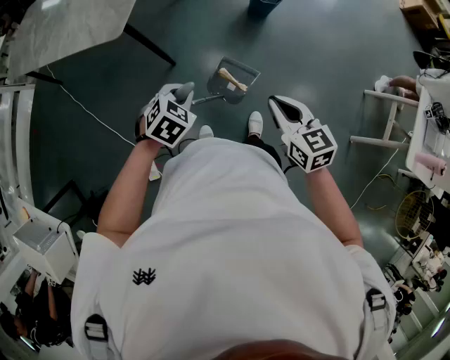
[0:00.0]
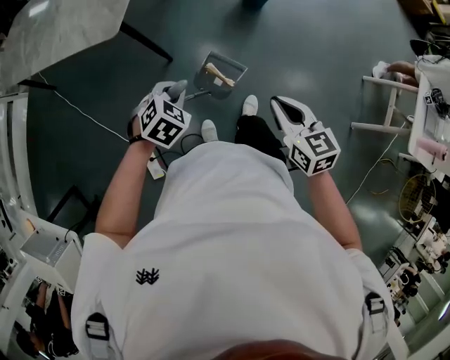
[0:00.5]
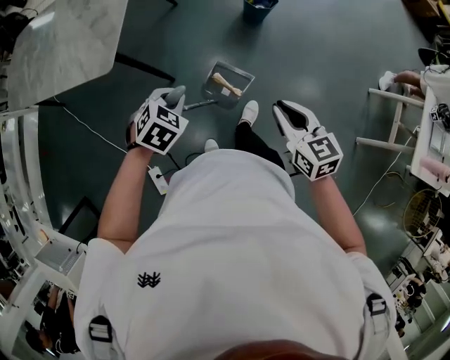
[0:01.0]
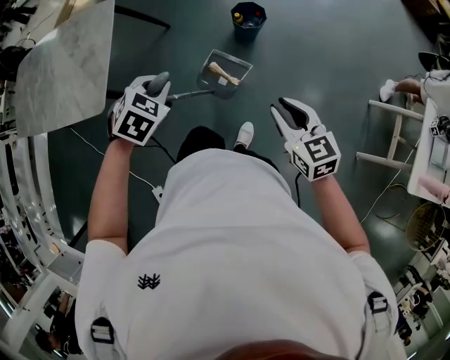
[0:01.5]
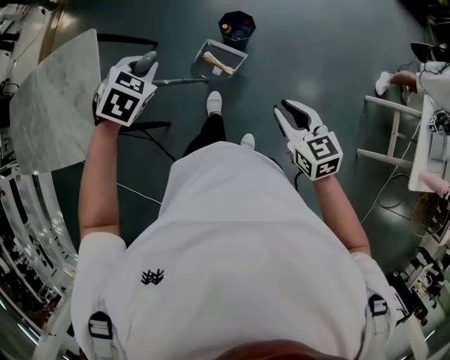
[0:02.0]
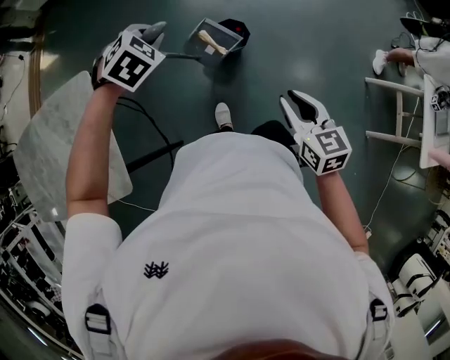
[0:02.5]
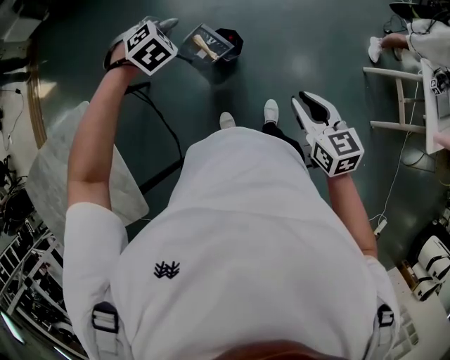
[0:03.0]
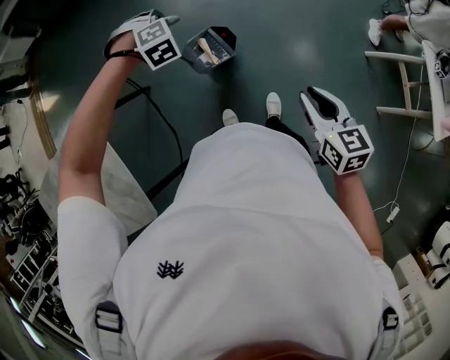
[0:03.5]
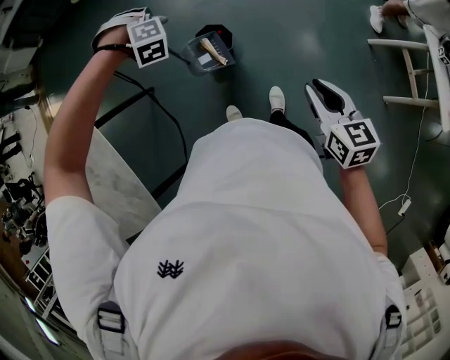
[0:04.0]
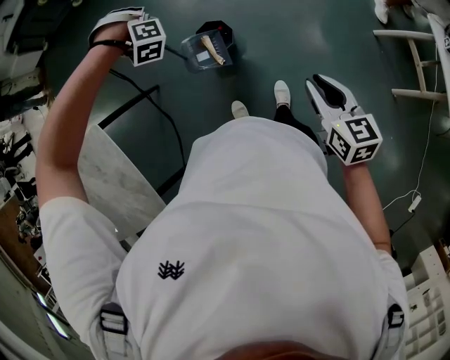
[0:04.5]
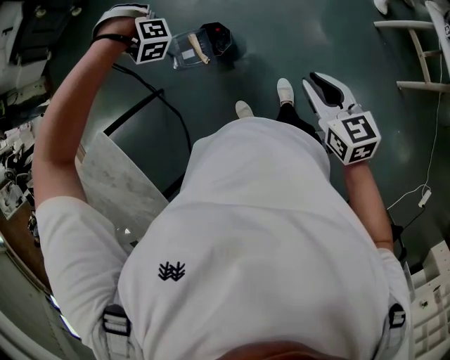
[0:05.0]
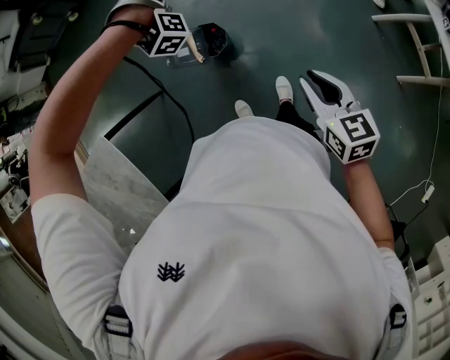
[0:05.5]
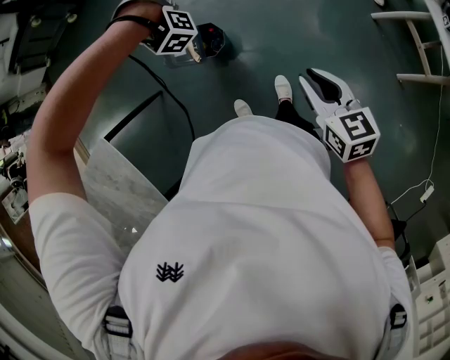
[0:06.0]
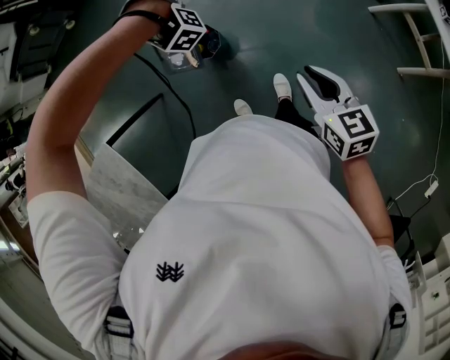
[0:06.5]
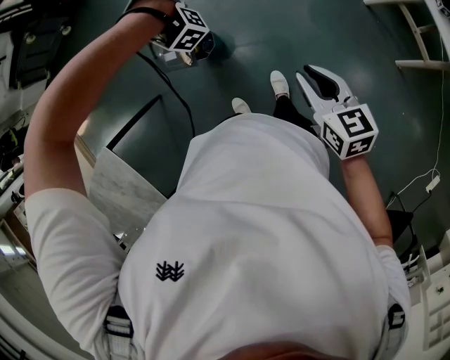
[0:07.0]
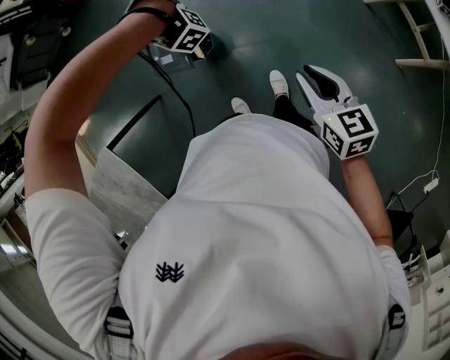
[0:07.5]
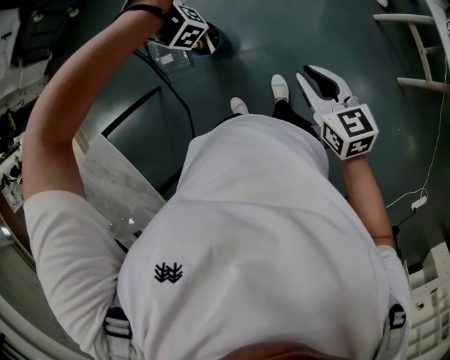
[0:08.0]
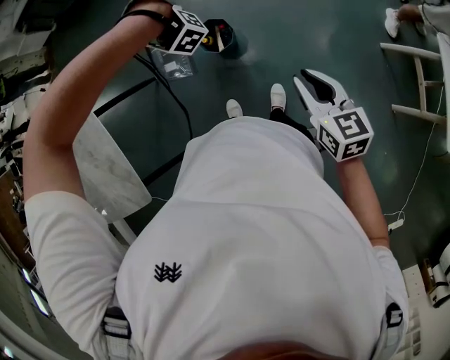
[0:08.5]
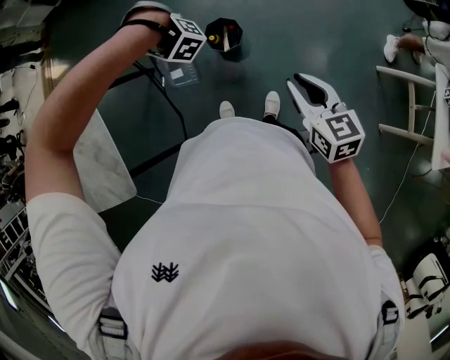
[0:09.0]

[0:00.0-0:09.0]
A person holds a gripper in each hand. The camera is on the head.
0:00.0 to 0:02.0: The right gripper shifts by about 40 cm.
0:02.0 to 0:04.5: The right gripper shifts by some 20 cm, and changes its angle by approximately 30 degrees.
0:04.5 to 0:07.0: The right gripper changes place by roughly 10 cm.
0:07.0 to 0:09.0: The right gripper shifts by approximately 15 cm, and turns by roughly 20 degrees.

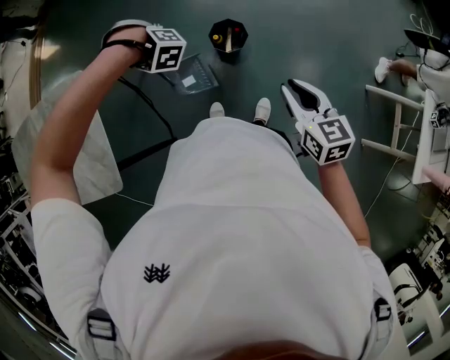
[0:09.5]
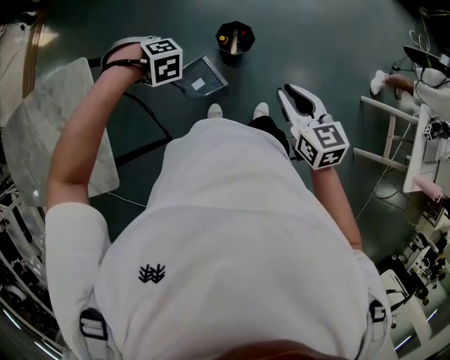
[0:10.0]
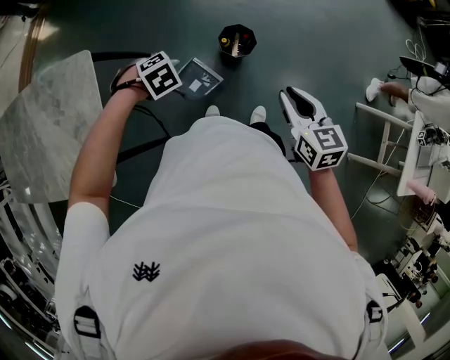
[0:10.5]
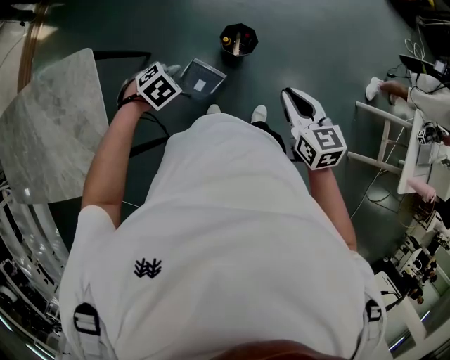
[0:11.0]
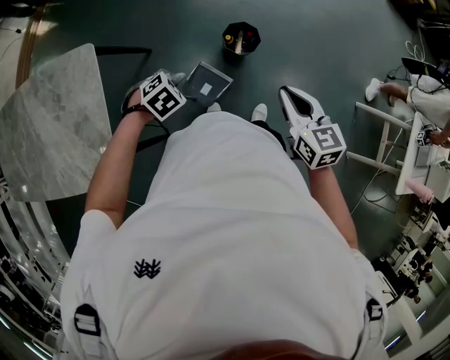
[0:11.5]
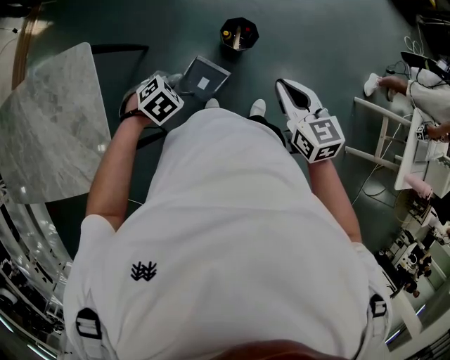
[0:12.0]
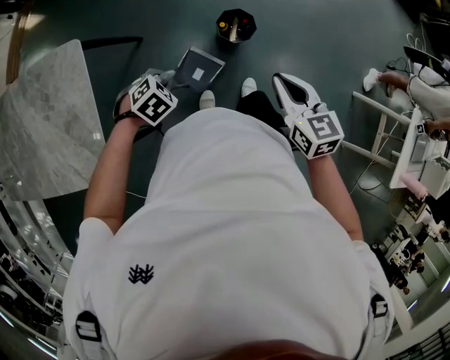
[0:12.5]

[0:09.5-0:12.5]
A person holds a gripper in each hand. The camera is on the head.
0:09.5 to 0:11.0: The right gripper changes place by roughly 10 cm.
0:11.0 to 0:12.5: The right gripper changes place by roughly 5 cm.

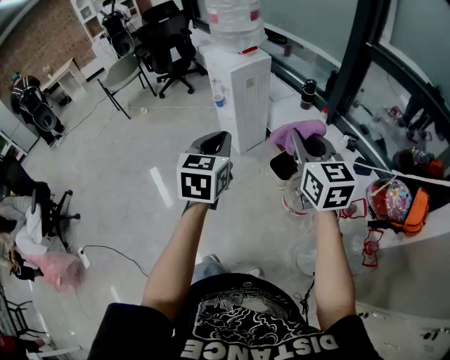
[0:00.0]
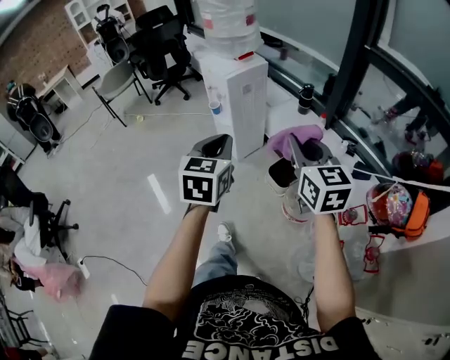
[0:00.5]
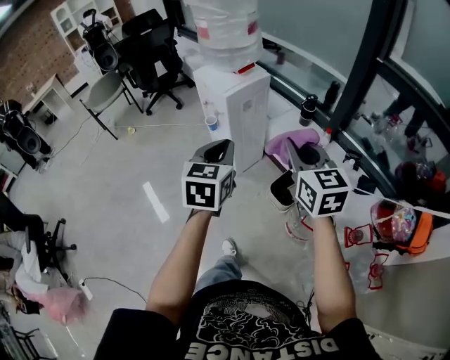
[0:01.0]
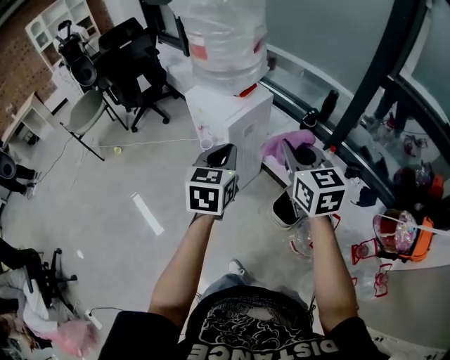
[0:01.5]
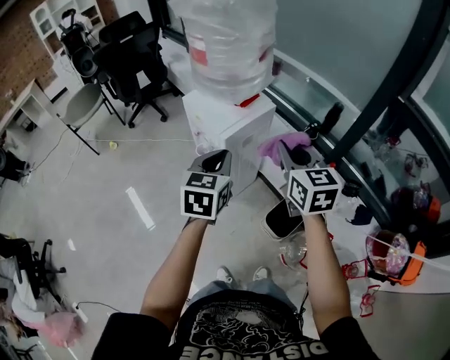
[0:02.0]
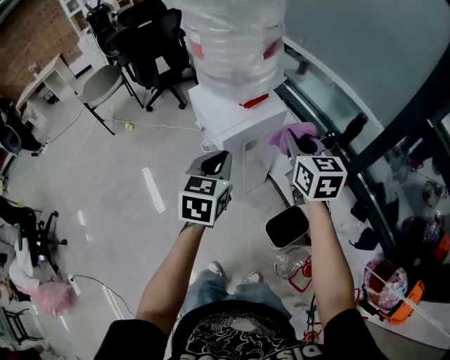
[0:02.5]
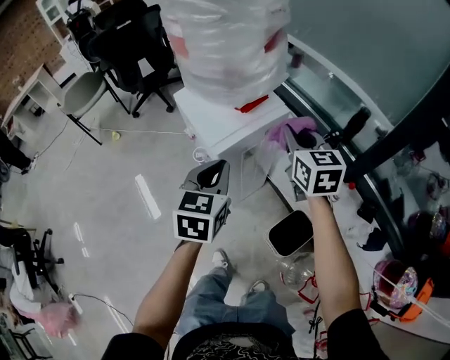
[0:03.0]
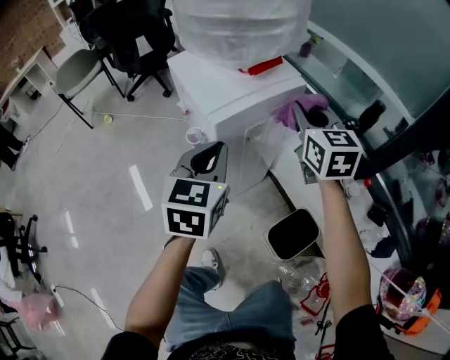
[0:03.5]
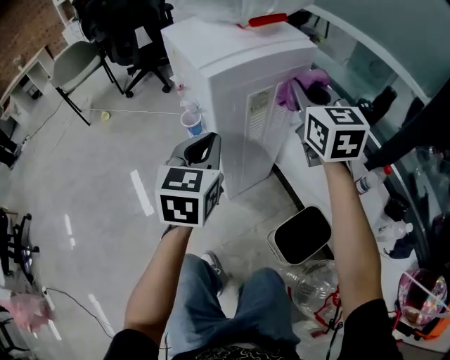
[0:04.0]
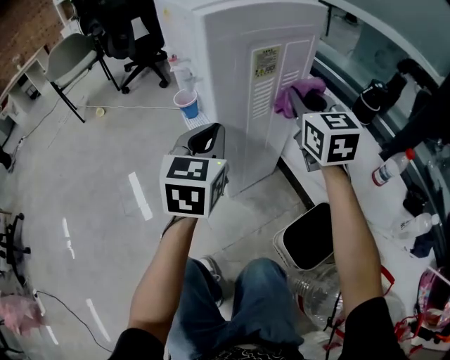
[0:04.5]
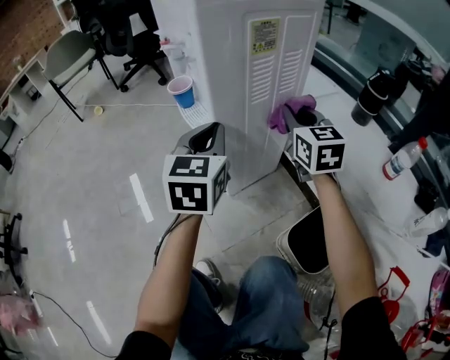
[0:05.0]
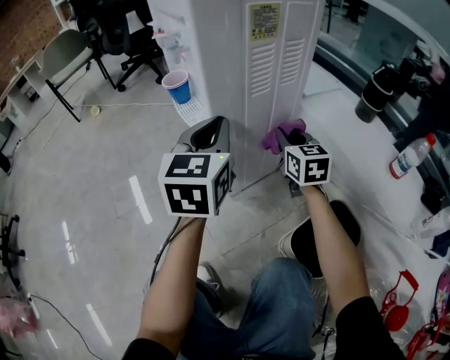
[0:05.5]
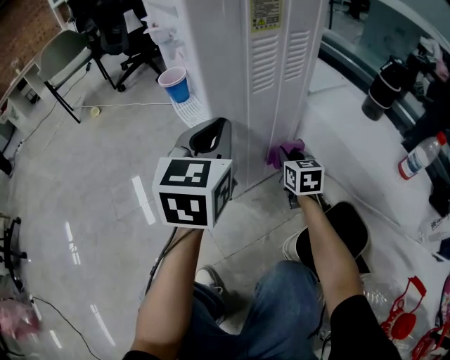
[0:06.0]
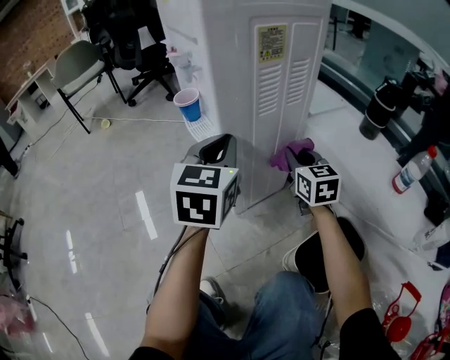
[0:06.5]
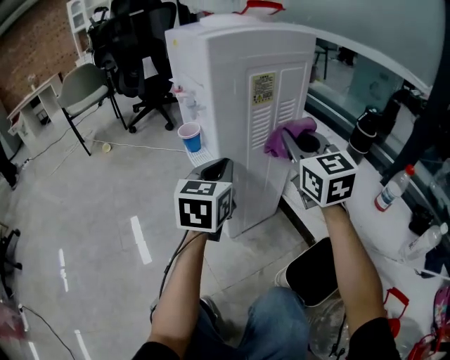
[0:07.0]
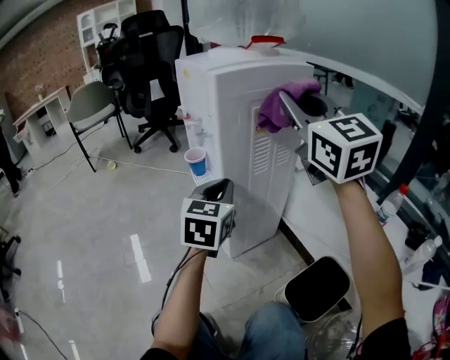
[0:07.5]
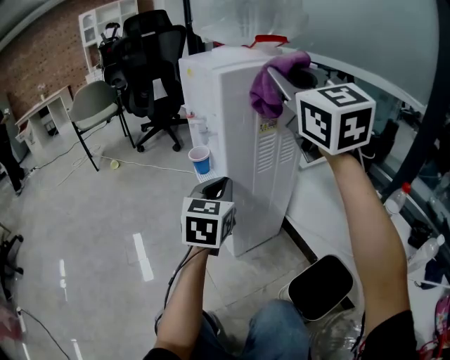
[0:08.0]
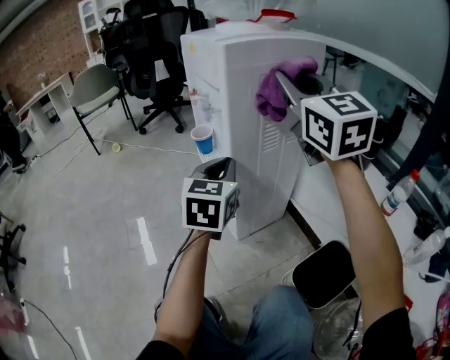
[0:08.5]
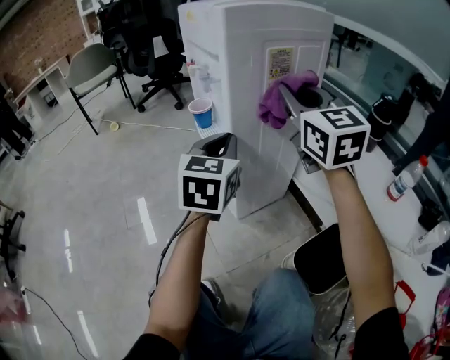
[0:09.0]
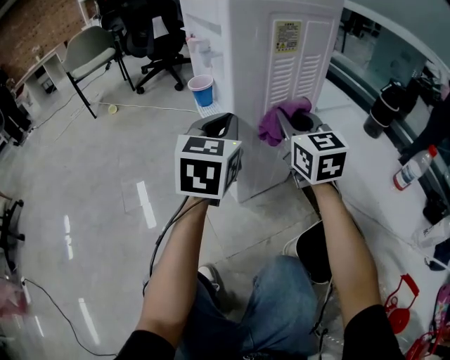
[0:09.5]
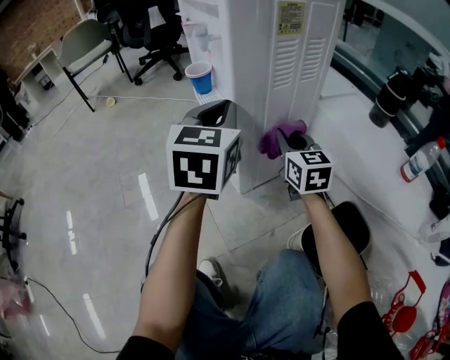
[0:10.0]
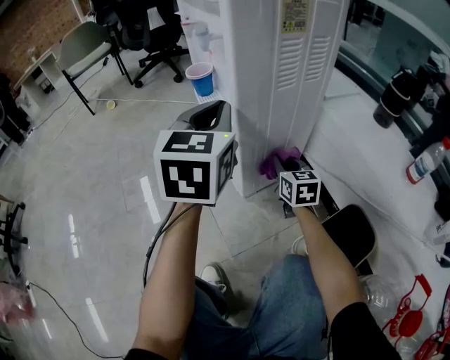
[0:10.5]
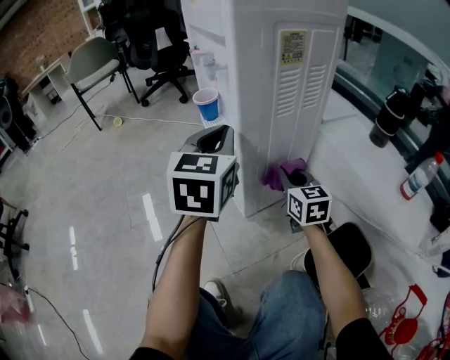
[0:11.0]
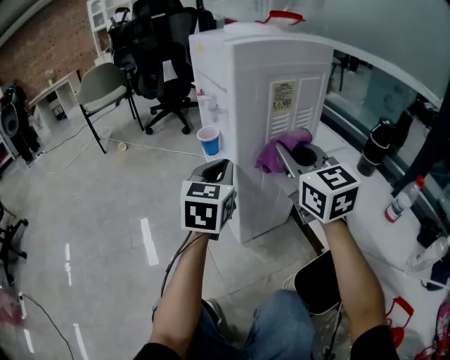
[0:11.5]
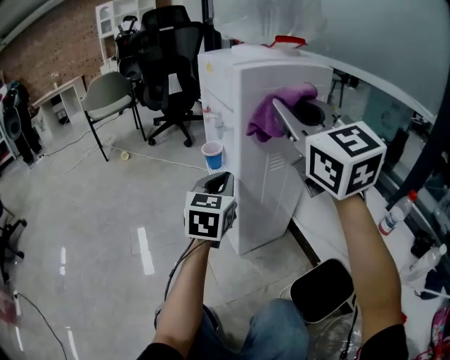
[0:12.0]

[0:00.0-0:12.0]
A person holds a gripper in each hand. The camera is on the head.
0:00.0 to 0:02.0: Both grippers travel together forward, approximately 40 cm.
0:02.0 to 0:04.0: The right gripper travels downward and forward by approximately 30 cm; the left gripper is displaced downward by some 25 cm.
0:04.0 to 0:06.0: The left gripper moves downward, about 15 cm, while the right gripper heads downward, covering about 50 cm, and rotates about 20 degrees.
0:06.0 to 0:08.0: The right gripper moves upward, about 50 cm, and points its fingers some 40 degrees further upward. The left gripper shifts by roughly 5 cm.
0:08.0 to 0:10.0: The right gripper moves downward, about 40 cm, and changes its angle by roughly 30 degrees.
0:10.0 to 0:12.0: The right gripper travels upward by roughly 35 cm, and changes its angle by approximately 30 degrees.

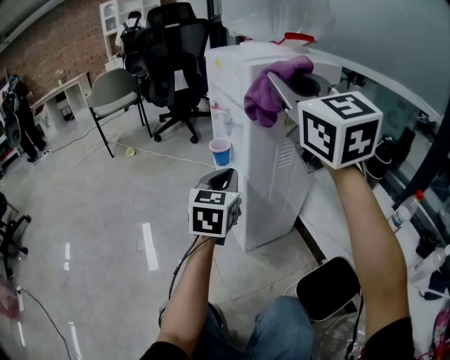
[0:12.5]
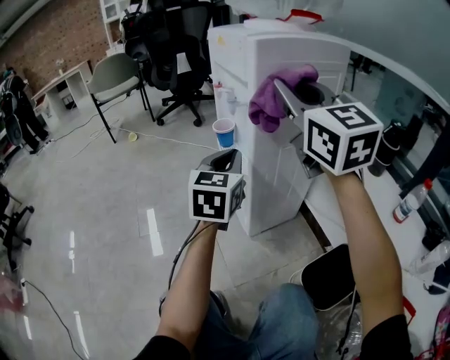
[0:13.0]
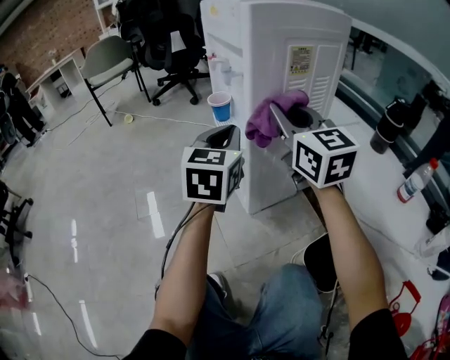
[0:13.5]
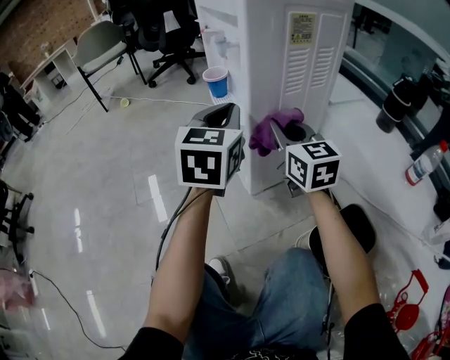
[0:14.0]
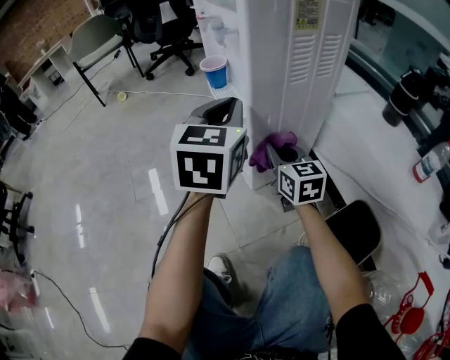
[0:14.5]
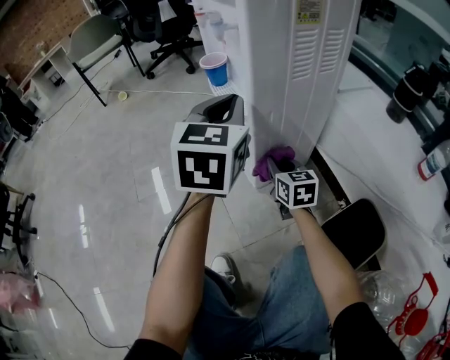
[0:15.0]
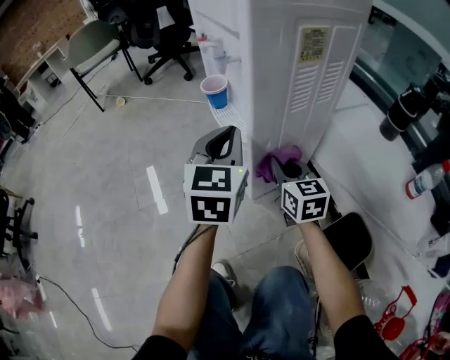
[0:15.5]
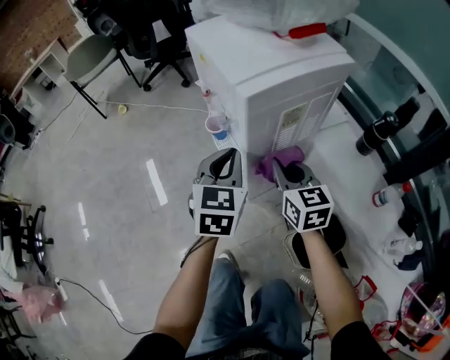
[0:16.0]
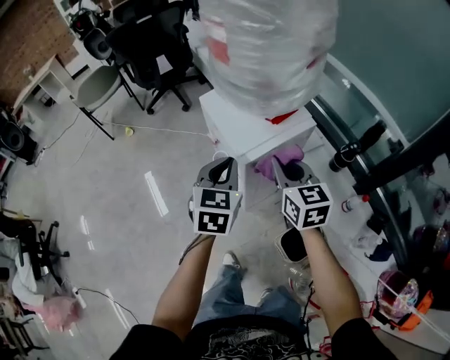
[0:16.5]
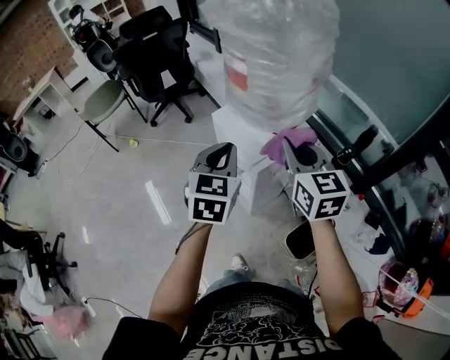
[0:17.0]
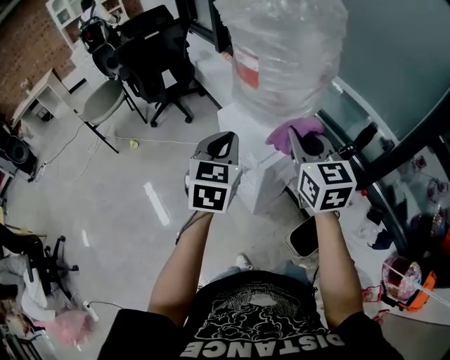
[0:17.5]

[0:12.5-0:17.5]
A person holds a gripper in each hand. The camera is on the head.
0:12.5 to 0:15.0: The right gripper heads downward, covering some 50 cm, and points its fingers about 30 degrees further downward.
0:15.0 to 0:17.5: The right gripper is displaced upward by some 70 cm, and turns by some 20 degrees, while the left gripper travels upward by roughly 50 cm.
